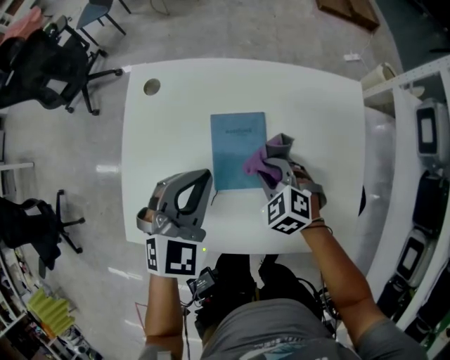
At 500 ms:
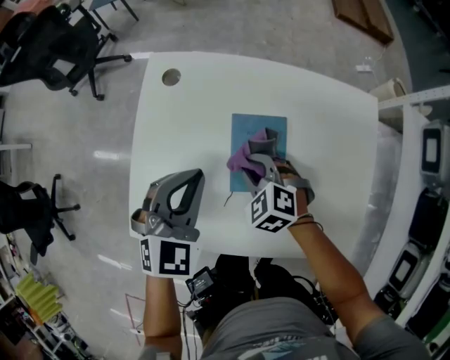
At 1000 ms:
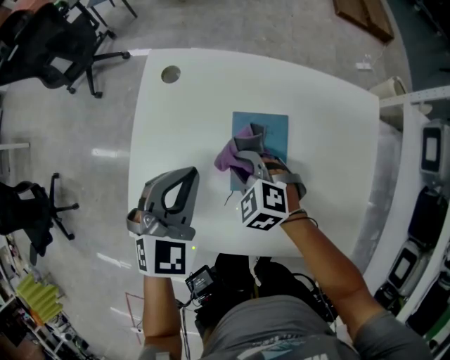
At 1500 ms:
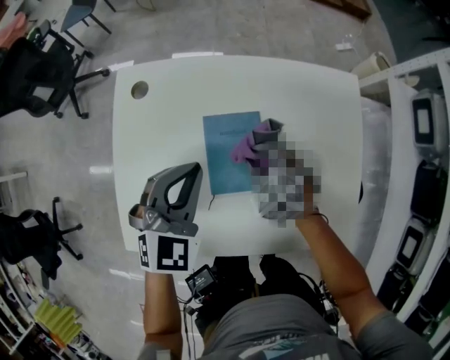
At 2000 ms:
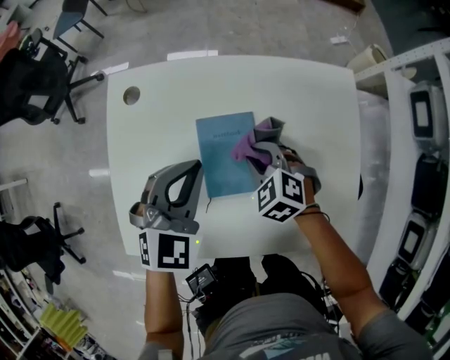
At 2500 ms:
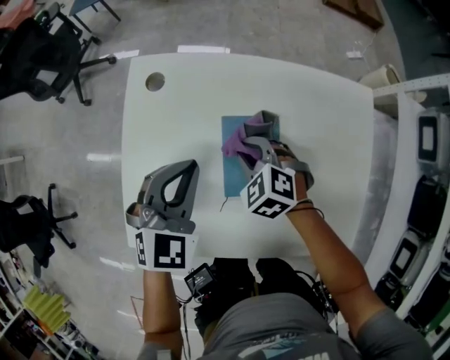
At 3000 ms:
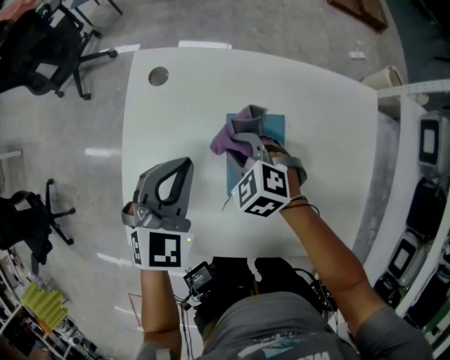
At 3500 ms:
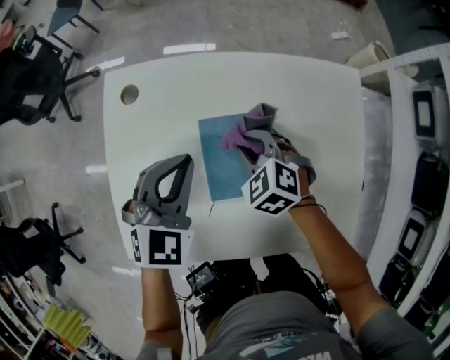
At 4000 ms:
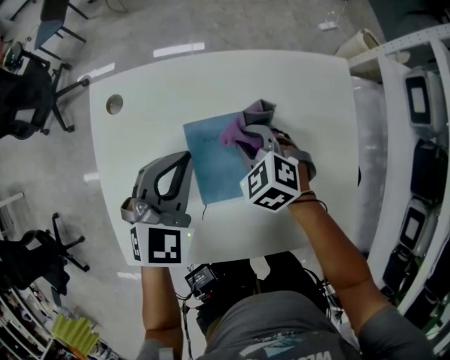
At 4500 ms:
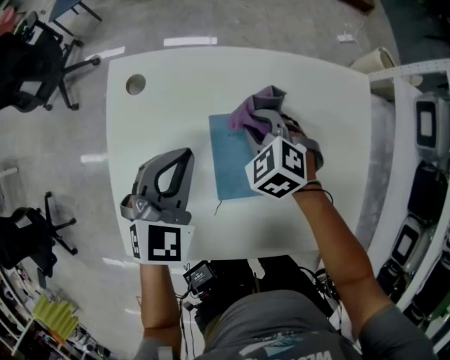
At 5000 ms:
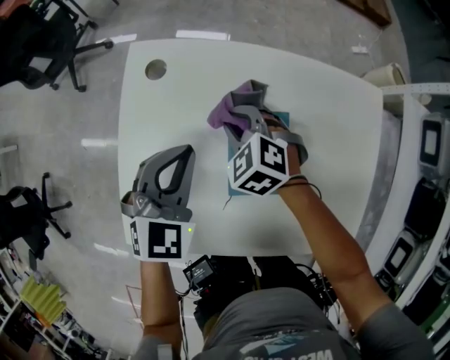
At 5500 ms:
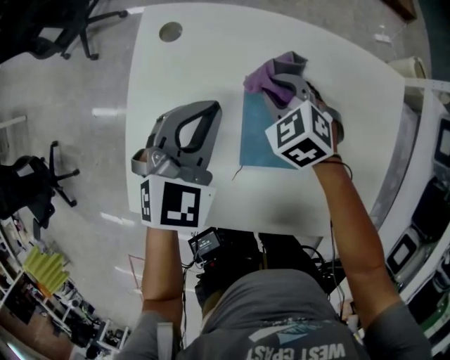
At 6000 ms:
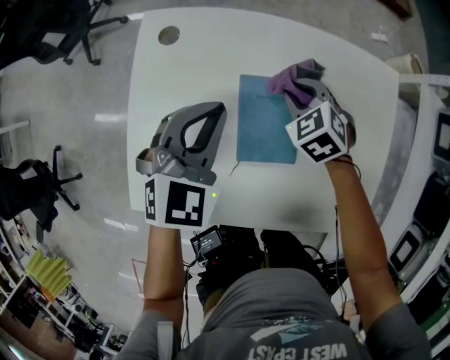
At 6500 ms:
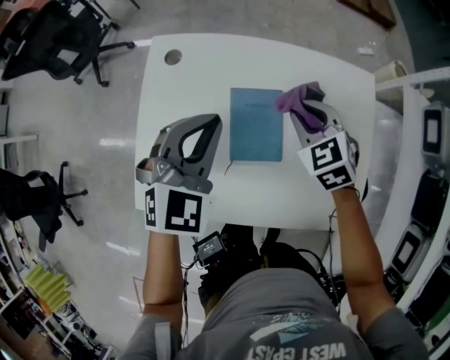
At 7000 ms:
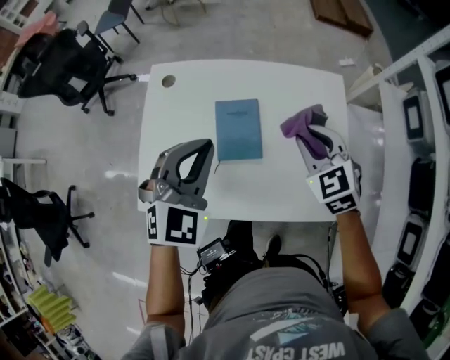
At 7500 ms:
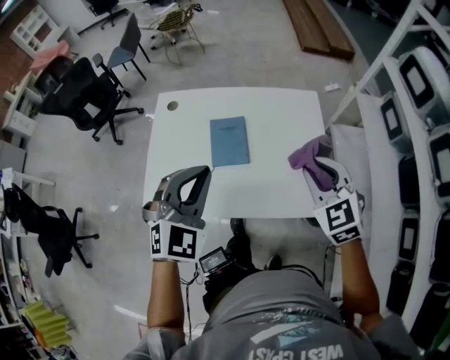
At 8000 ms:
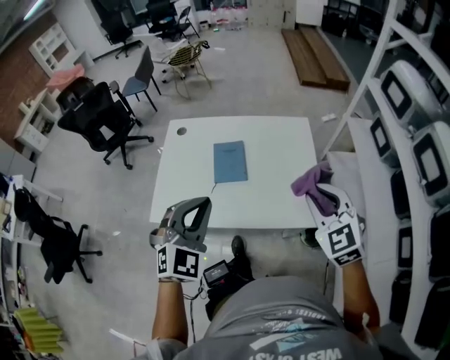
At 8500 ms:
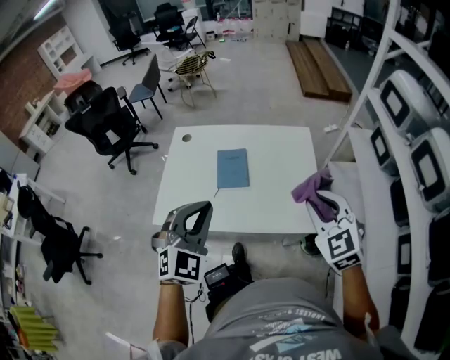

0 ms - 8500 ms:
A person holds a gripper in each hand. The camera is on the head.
0 ms - 2000 ms: The right gripper travels to the left and back again, roughly 15 cm each way. Meanwhile the left gripper moves approximately 10 cm to the left and comes back.
2000 ms - 4000 ms: The right gripper moves about 10 cm to the left and comes back; the left gripper goes to the left and returns, roughly 10 cm each way.
4000 ms - 6500 ms: Both grippers travel together upward, roughly 10 cm. The right gripper reaches roughly 10 cm to the left, then returns.
6500 ms - 8500 ms: The left gripper is displaced backward and upward by approximately 35 cm; the right gripper is displaced backward, upward and to the right by roughly 40 cm, and turns by roughly 20 degrees.

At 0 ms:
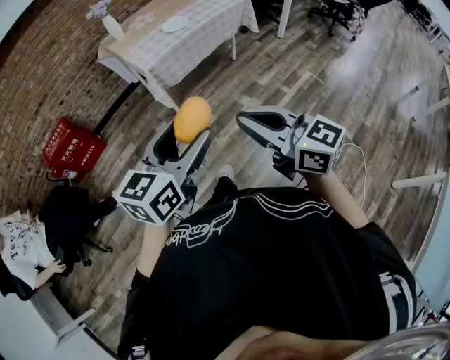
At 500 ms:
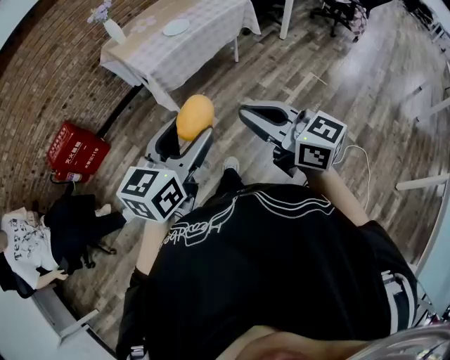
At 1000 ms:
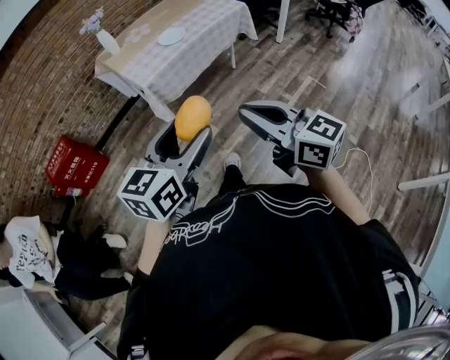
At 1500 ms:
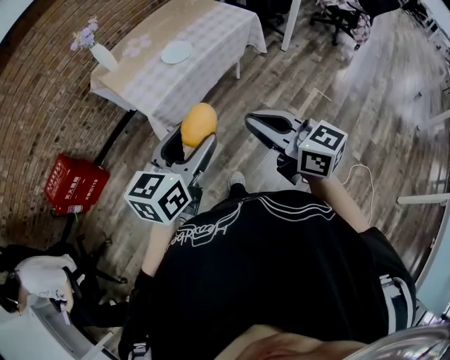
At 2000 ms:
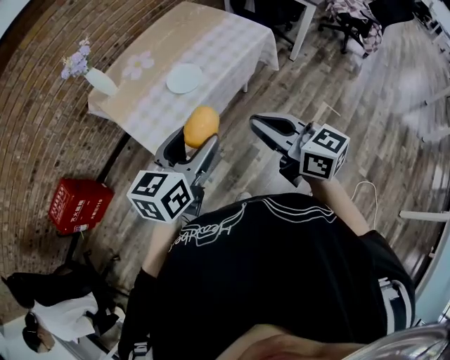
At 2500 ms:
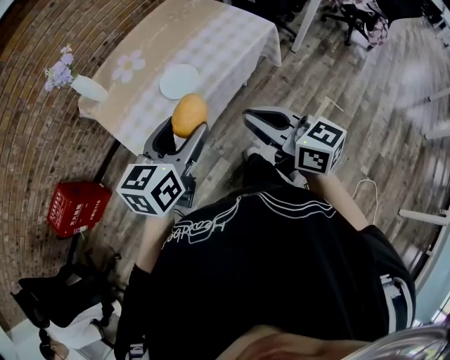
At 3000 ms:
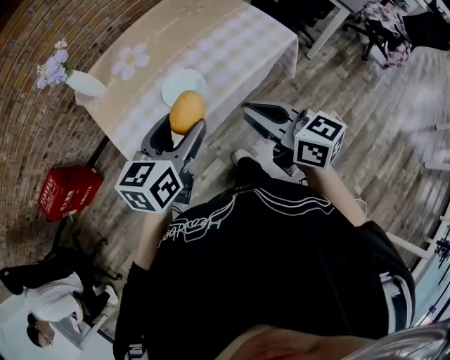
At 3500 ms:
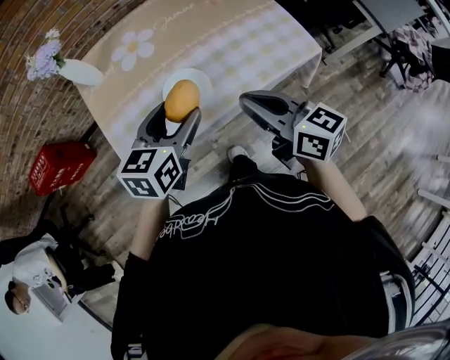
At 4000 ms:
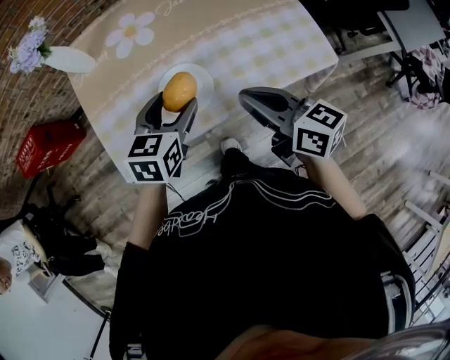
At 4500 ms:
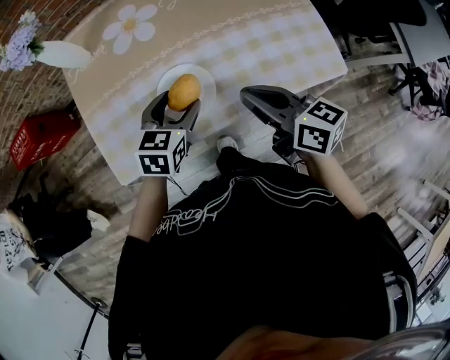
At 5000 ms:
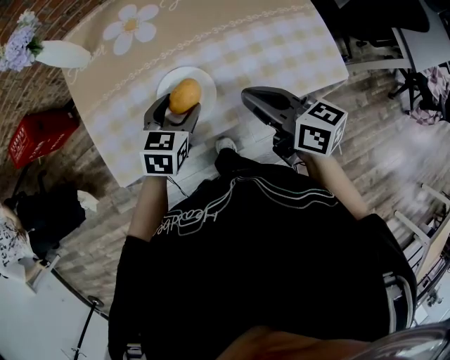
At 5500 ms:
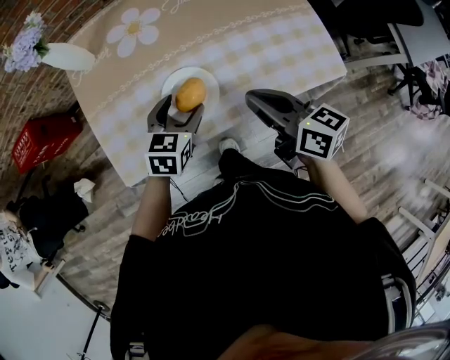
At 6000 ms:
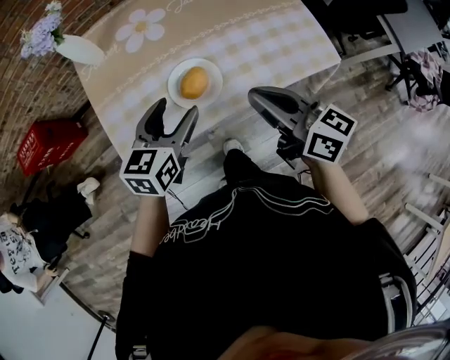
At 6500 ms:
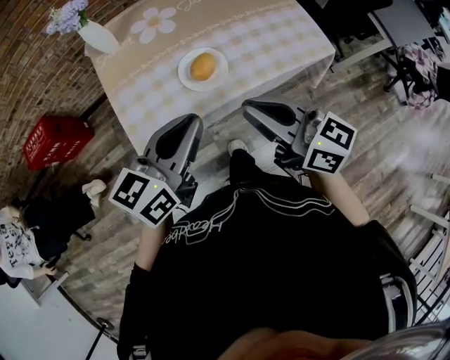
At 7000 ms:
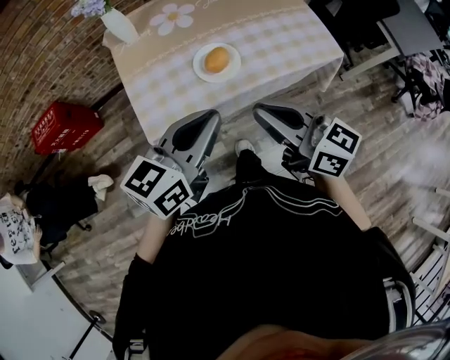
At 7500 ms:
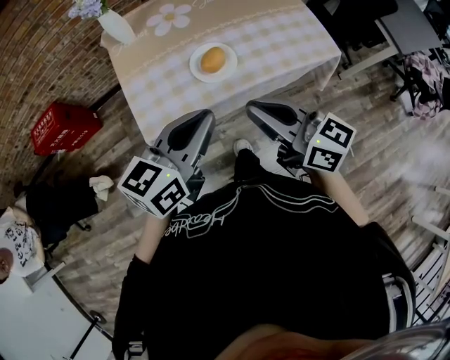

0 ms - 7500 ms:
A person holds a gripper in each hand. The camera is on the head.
0 ms - 2000 ms: The two grippers travel together, forward, roughly 50 cm.
2000 ms - 4000 ms: The left gripper shifts by some 40 cm, and swivels about 30 degrees, while the right gripper shifts by roughly 40 cm, and swivels about 30 degrees.
4000 ms - 5500 ms: The left gripper travels downward by some 10 cm.
5500 ms - 7500 ms: The right gripper heads backward, upward and to the left, covering about 25 cm. The left gripper shifts approximately 30 cm upward and backward, turns by roughly 30 degrees, and closes up.

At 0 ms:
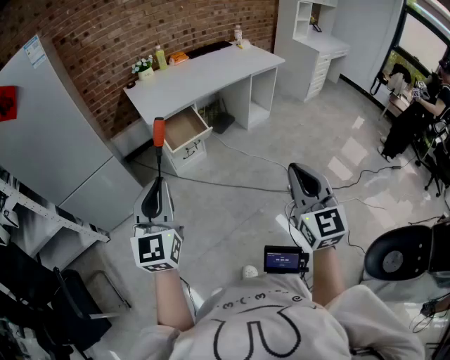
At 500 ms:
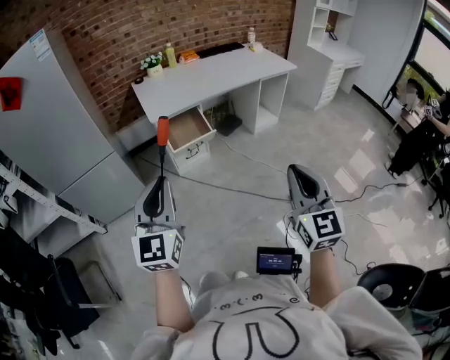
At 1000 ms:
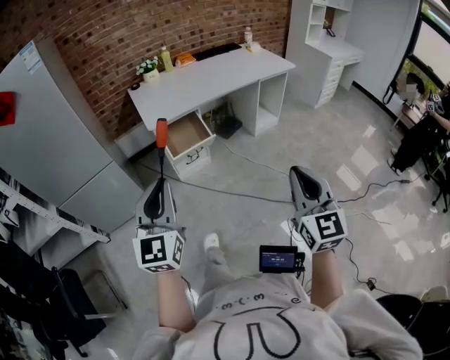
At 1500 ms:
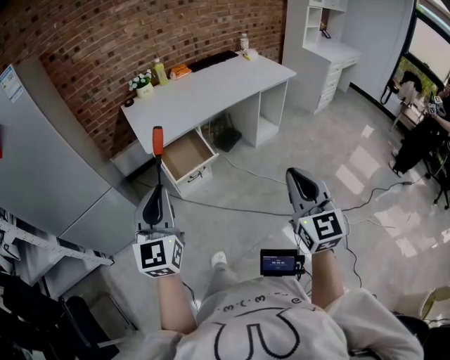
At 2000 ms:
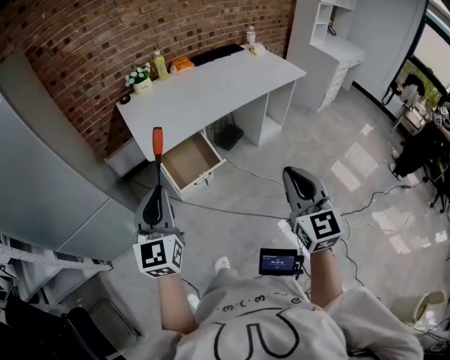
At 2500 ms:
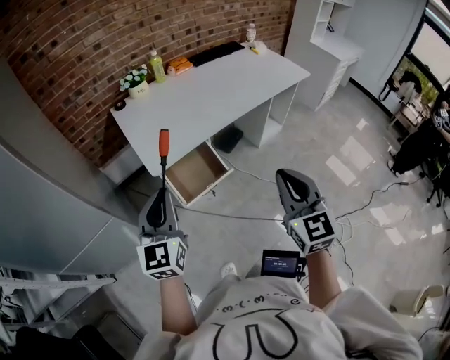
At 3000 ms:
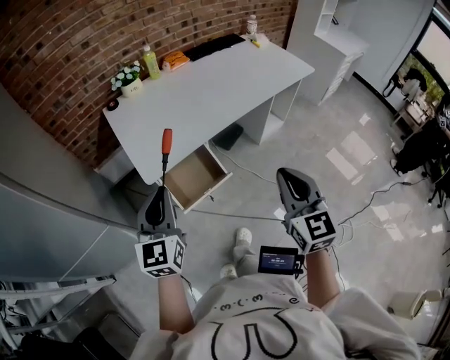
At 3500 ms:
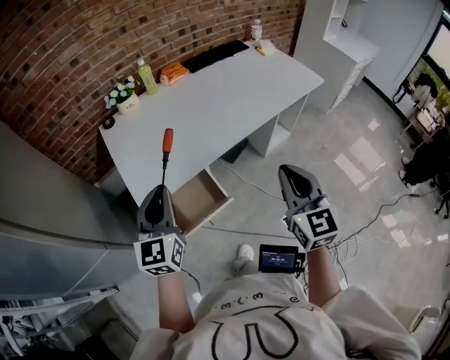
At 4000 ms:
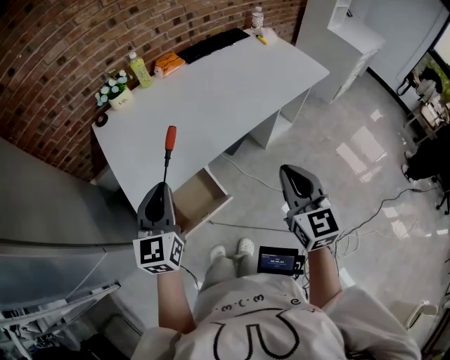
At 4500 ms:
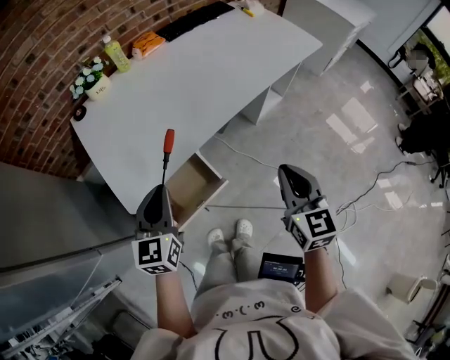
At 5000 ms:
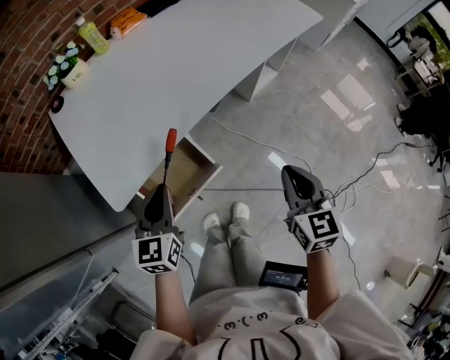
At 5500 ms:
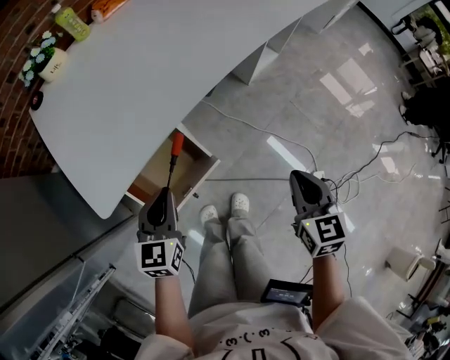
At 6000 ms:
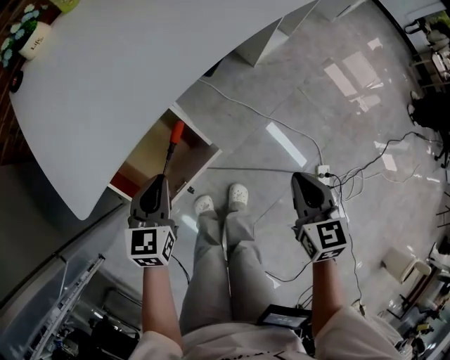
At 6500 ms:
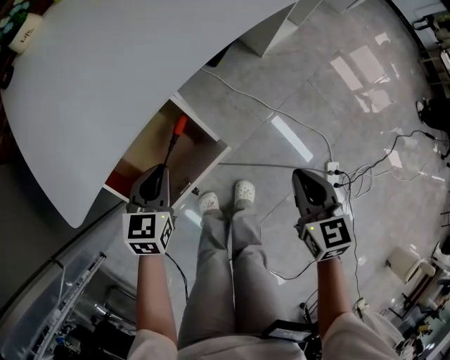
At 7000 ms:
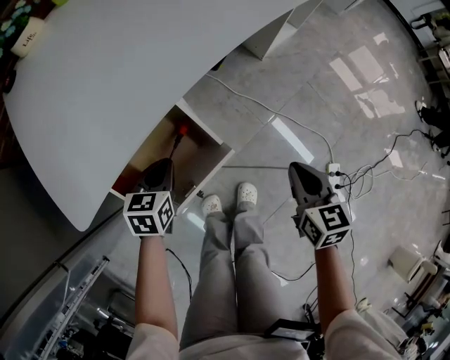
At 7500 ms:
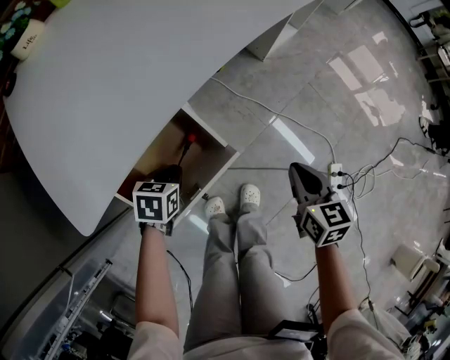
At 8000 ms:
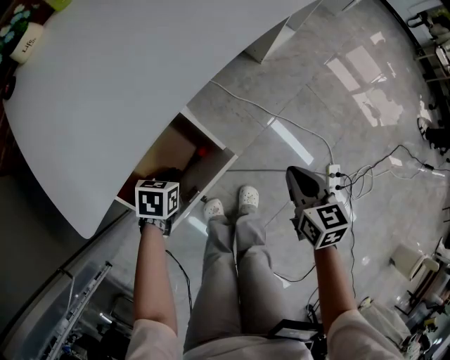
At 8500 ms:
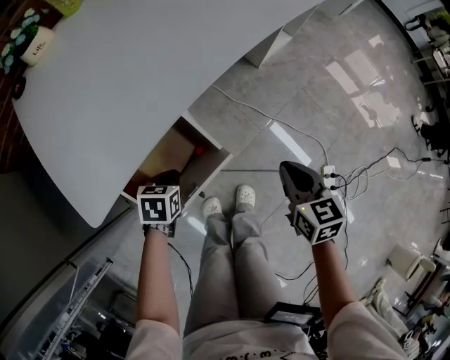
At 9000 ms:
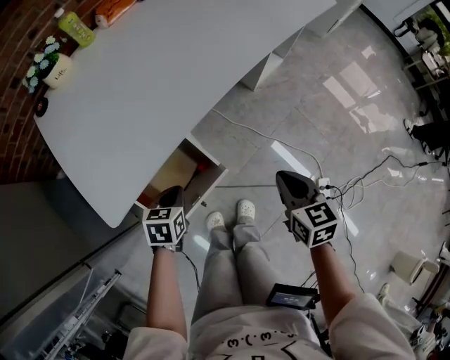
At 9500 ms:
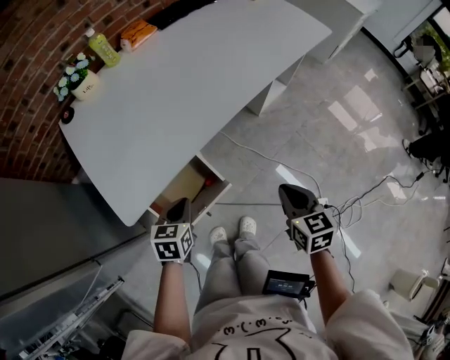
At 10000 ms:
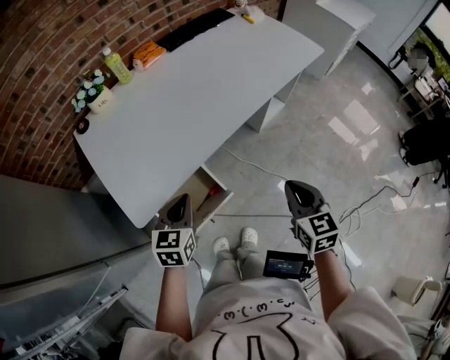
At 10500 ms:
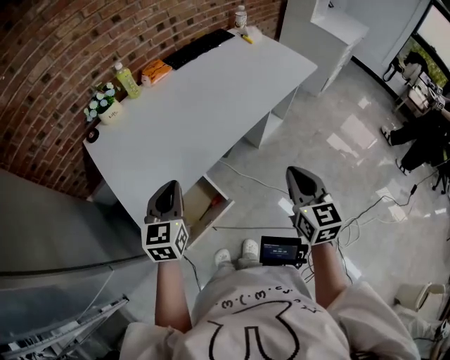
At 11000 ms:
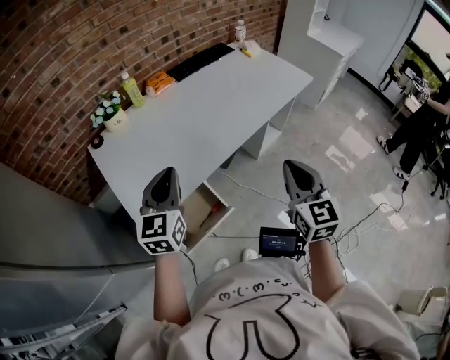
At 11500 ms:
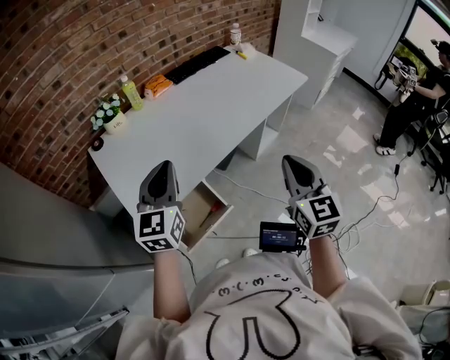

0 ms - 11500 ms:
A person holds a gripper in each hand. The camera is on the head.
0 ms - 2000 ms: Both grippers travel together forward, approximately 30 cm.
2000 ms - 4000 ms: Both grippers travel together forward, approximately 35 cm.
4000 ms - 6000 ms: The grippers both shift downward by about 35 cm. The right gripper rotates about 30 degrees. Meanwhile the left gripper swivels about 30 degrees.
6000 ms - 7500 ms: The right gripper shifts approximately 10 cm downward. Meanwhile the left gripper goes roughly 15 cm downward, and swivels roughly 30 degrees.
7500 ms - 9500 ms: Both grippers move upward, about 20 cm.
9500 ms - 11500 ms: The grippers both shift upward by roughly 30 cm. The left gripper tips its fingers upward by some 40 degrees. Meanwhile the right gripper points its fingers about 30 degrees further upward.
